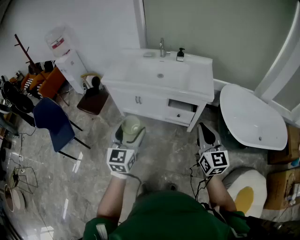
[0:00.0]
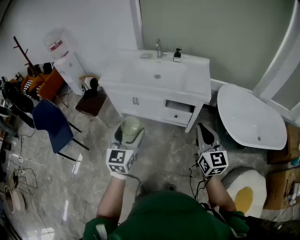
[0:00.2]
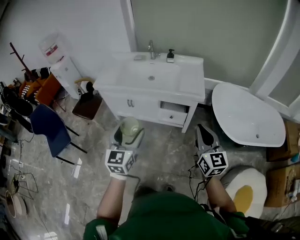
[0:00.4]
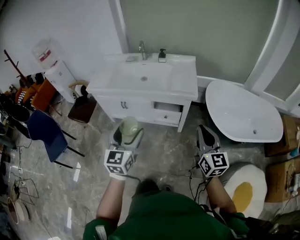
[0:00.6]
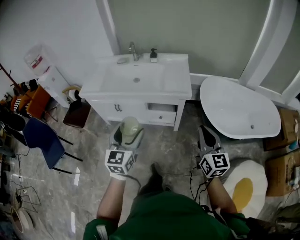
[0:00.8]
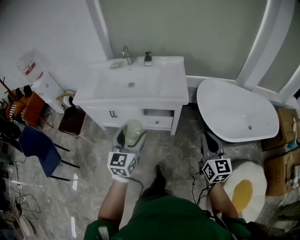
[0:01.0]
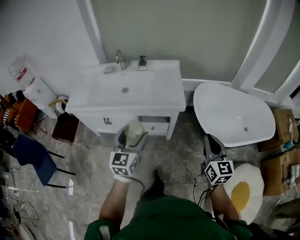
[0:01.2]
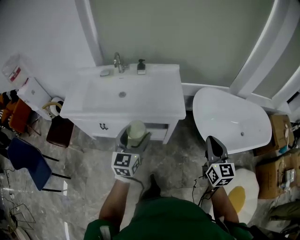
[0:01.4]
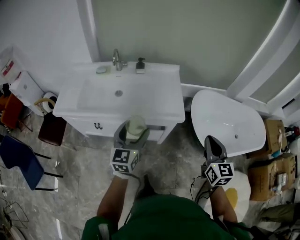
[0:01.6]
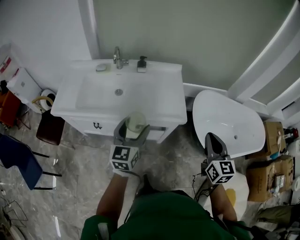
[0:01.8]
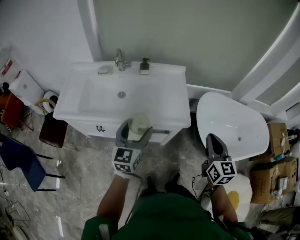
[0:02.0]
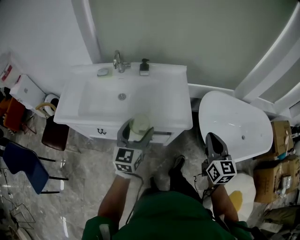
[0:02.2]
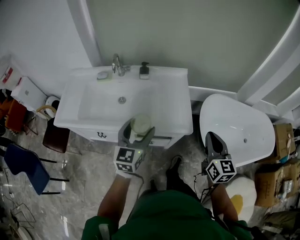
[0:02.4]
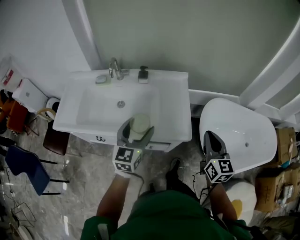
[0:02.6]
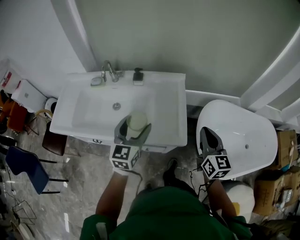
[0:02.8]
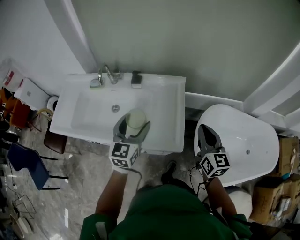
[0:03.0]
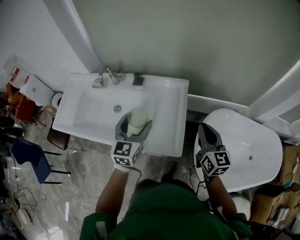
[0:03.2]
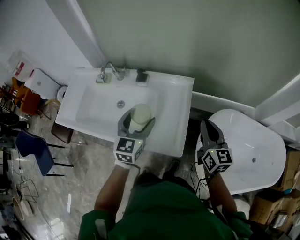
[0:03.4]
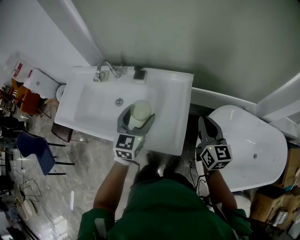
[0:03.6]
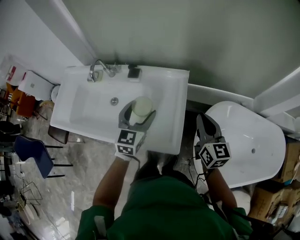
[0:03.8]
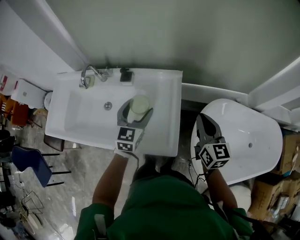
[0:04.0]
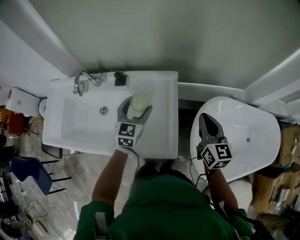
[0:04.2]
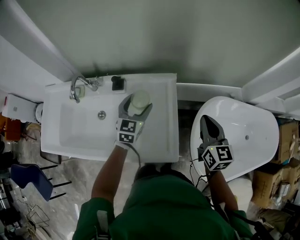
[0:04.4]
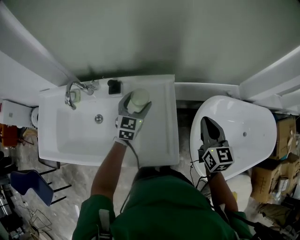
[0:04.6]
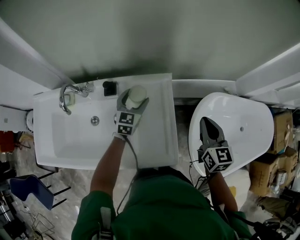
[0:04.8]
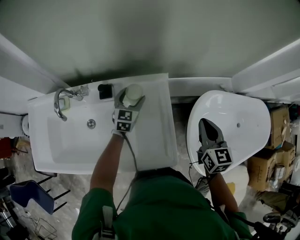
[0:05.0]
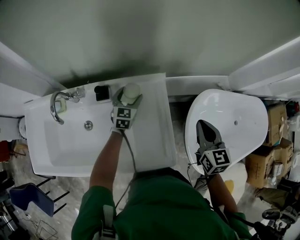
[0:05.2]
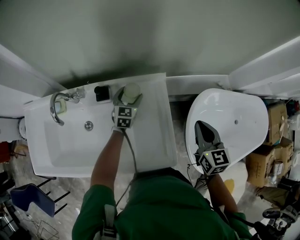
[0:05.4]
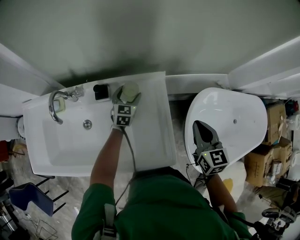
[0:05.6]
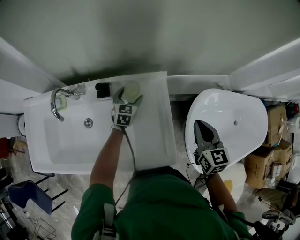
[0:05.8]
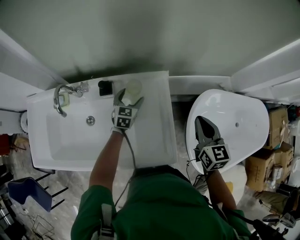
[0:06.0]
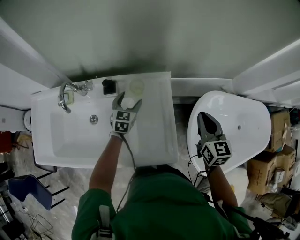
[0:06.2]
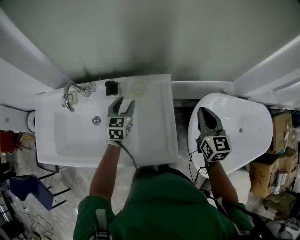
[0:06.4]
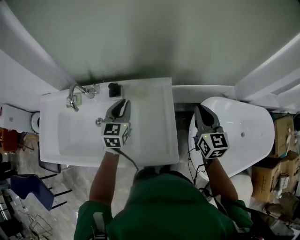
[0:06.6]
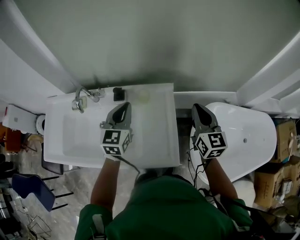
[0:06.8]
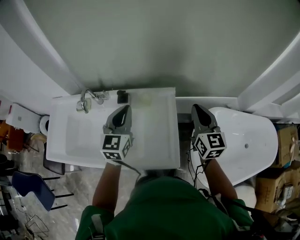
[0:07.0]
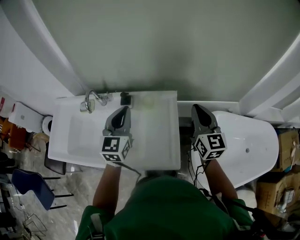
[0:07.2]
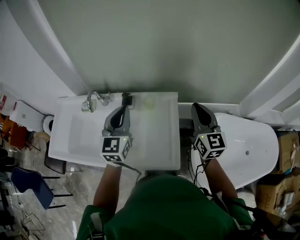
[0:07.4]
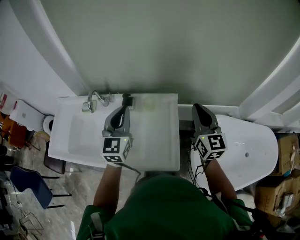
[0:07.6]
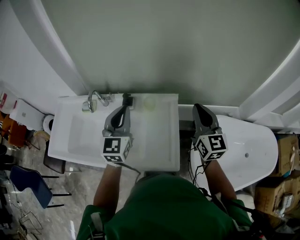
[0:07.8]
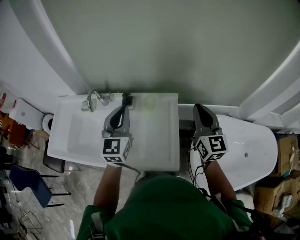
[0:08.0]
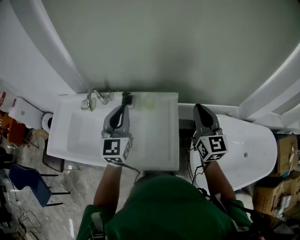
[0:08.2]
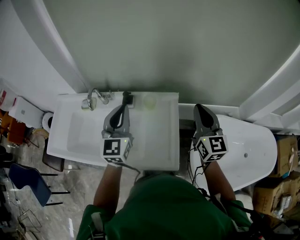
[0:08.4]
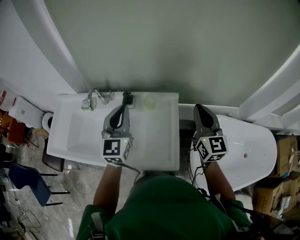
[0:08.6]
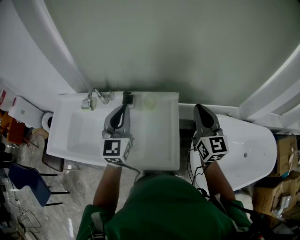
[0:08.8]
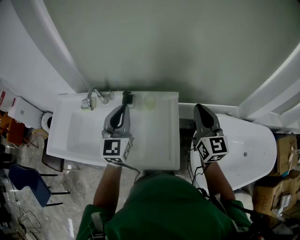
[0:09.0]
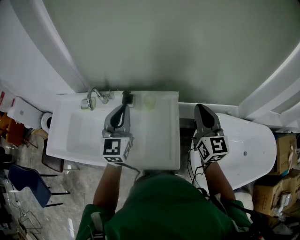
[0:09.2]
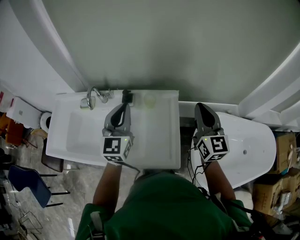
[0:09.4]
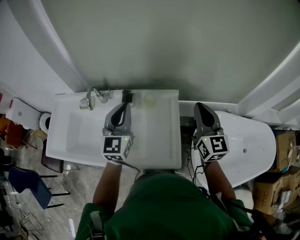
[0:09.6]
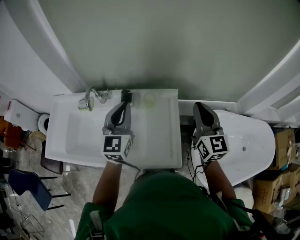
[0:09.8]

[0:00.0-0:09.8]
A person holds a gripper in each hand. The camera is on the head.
0:00.0 to 0:01.4: The right gripper travels to the right and forward by about 25 cm, and swivels some 20 degrees, while the left gripper travels forward and to the right by about 30 cm.
0:01.4 to 0:02.8: The grippers both shift forward by approximately 30 cm.
0:02.8 to 0:04.2: Both grippers move forward and to the right, approximately 25 cm.
0:04.2 to 0:05.6: The right gripper ends up approximately 5 cm from where it was. Meanwhile the left gripper is displaced forward and downward by some 25 cm.
0:05.6 to 0:07.0: The left gripper shifts roughly 35 cm upward and backward, rotates about 20 degrees, and closes its fingers; the right gripper goes some 10 cm upward, and changes its angle by roughly 20 degrees.
0:07.0 to 0:08.4: The left gripper goes approximately 5 cm upward. Meanwhile the right gripper changes place by some 5 cm.
0:08.4 to 0:09.8: The grippers move only a little.

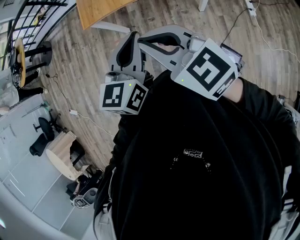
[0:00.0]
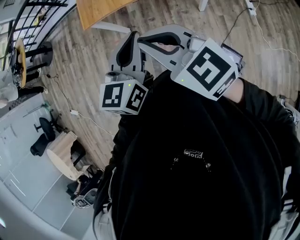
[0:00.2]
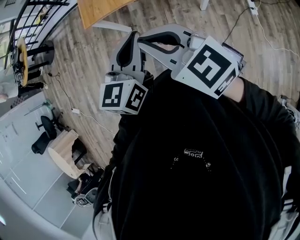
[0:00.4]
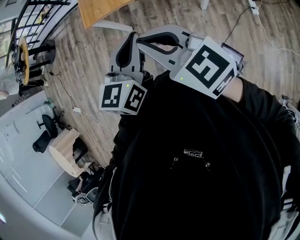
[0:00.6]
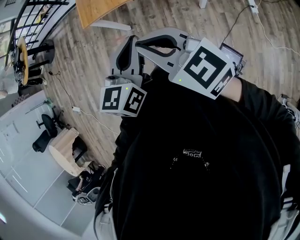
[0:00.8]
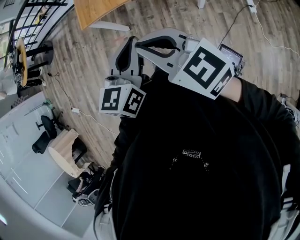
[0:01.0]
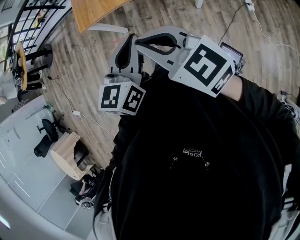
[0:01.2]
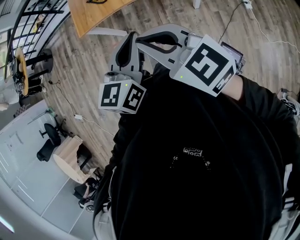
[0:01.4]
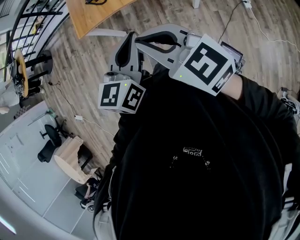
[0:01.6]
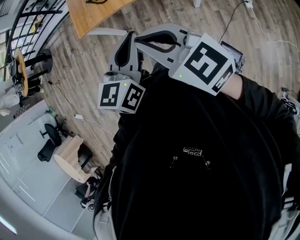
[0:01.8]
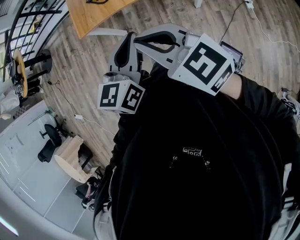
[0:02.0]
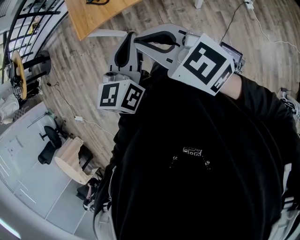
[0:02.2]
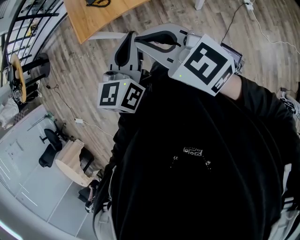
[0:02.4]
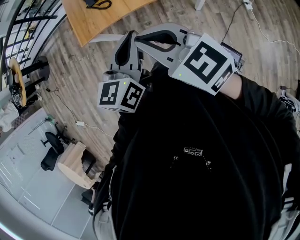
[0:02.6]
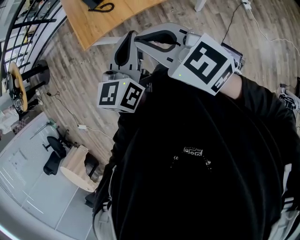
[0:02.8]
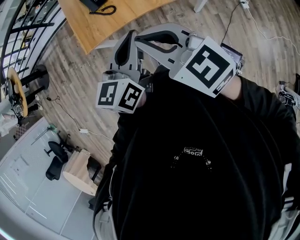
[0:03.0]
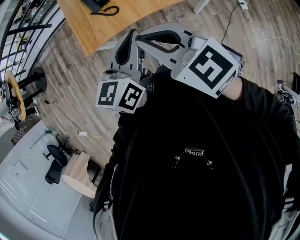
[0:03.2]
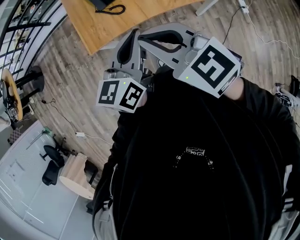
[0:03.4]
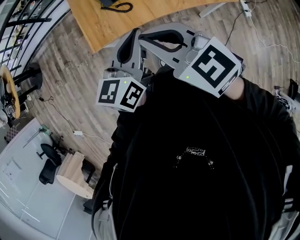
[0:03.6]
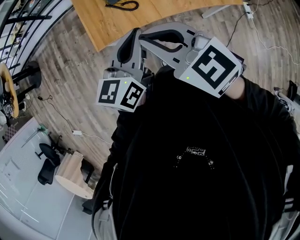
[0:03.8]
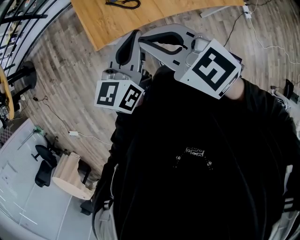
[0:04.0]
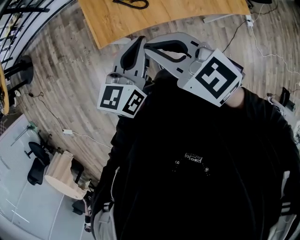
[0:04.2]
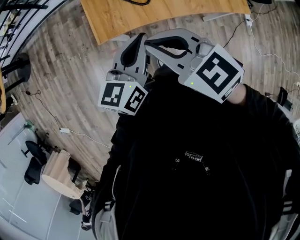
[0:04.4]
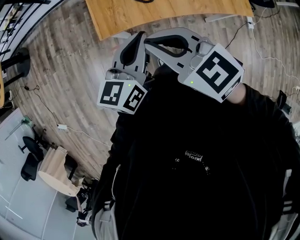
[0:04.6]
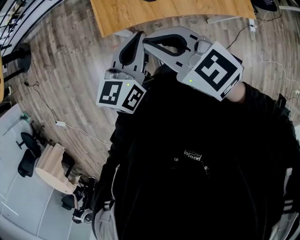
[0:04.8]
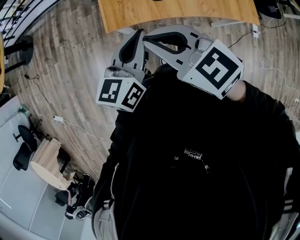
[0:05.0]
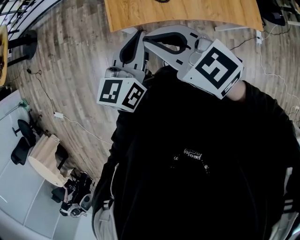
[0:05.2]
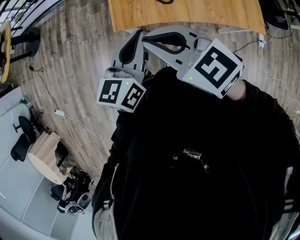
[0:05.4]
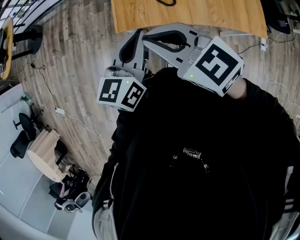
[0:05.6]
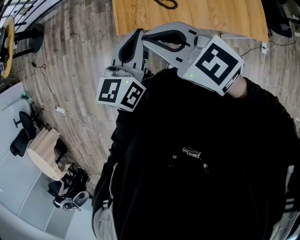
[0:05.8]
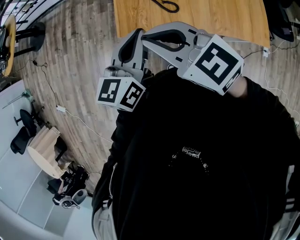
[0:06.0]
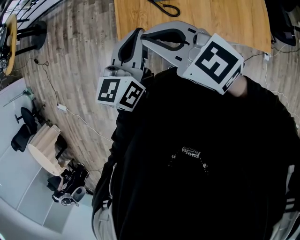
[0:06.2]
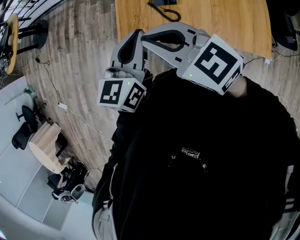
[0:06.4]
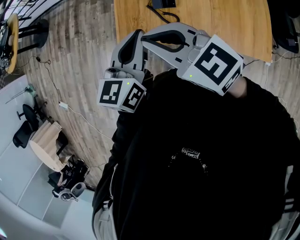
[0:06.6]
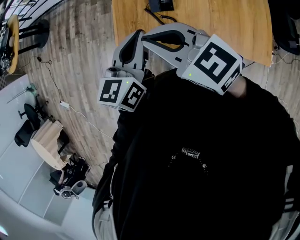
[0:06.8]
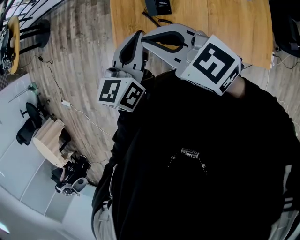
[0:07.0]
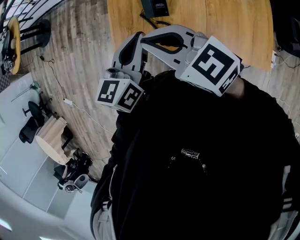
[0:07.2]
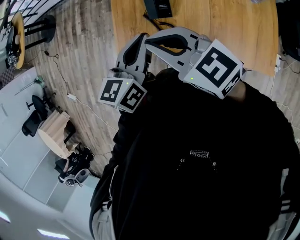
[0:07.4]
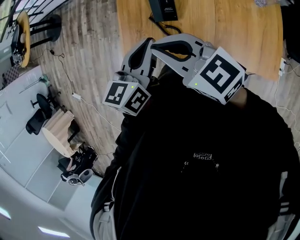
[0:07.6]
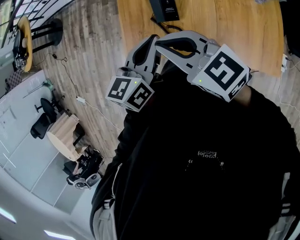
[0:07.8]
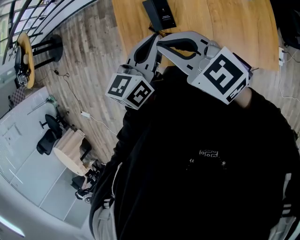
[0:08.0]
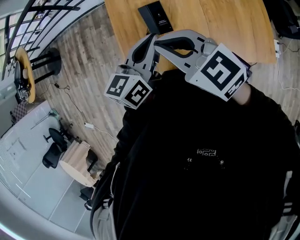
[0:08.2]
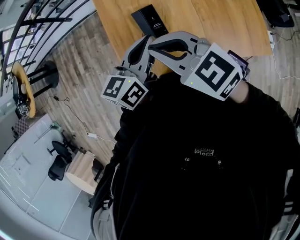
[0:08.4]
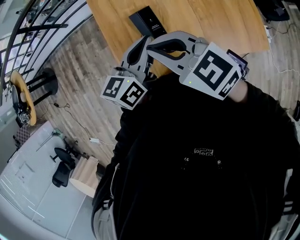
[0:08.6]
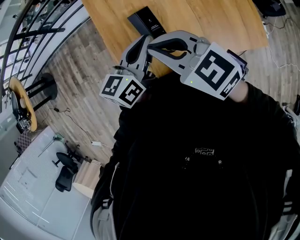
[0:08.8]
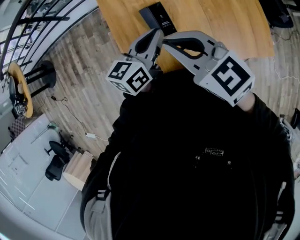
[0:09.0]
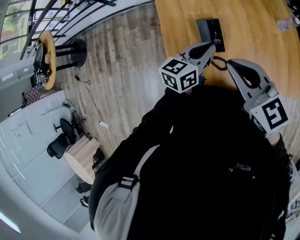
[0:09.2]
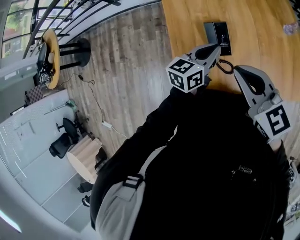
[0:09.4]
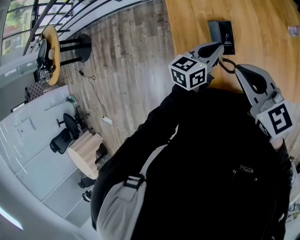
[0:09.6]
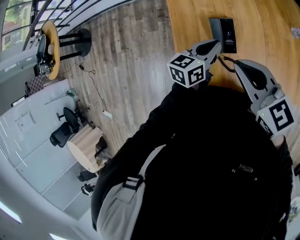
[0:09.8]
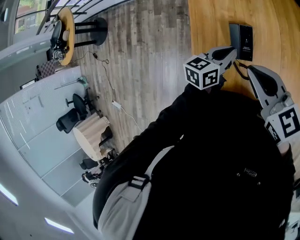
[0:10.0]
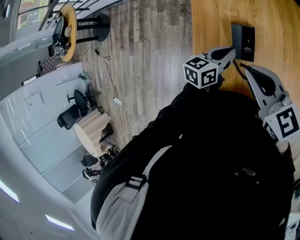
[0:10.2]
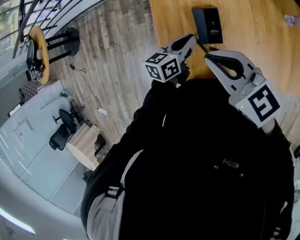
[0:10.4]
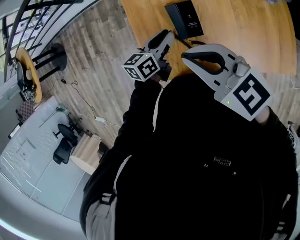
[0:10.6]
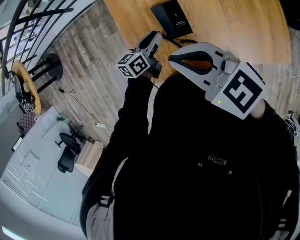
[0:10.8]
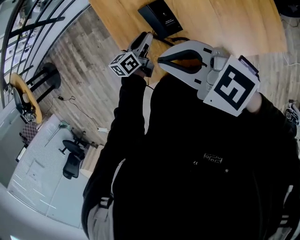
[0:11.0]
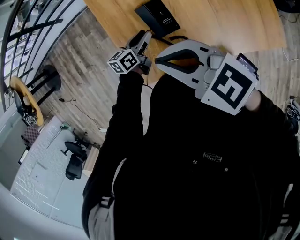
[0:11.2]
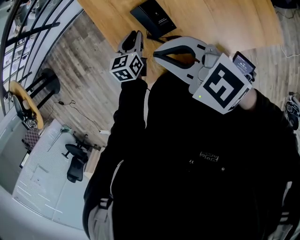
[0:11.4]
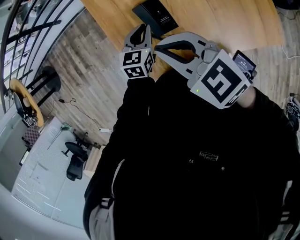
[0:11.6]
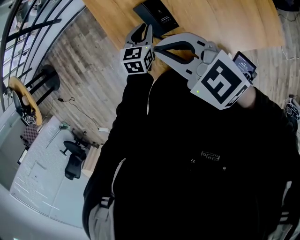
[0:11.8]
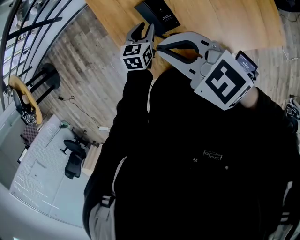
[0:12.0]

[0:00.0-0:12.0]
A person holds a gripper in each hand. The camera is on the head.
0:00.0 to 0:01.6: There are only small adjustments of the grippers.
0:01.6 to 0:03.0: The left gripper heads forward, covering approximately 15 cm, while the right gripper goes roughly 20 cm forward and to the left.
0:03.0 to 0:04.4: Both grippers move to the left and forward, approximately 20 cm.
0:04.4 to 0:06.0: The grippers both shift forward by approximately 5 cm.
0:06.0 to 0:07.6: Both grippers move to the right and forward, roughly 20 cm.
0:07.6 to 0:09.0: The right gripper changes place by approximately 5 cm, and turns by roughly 30 degrees. Meanwhile the left gripper moves roughly 10 cm, and turns by some 30 degrees.
0:09.0 to 0:10.4: The right gripper travels to the left by approximately 5 cm. Meanwhile the left gripper is displaced downward and to the left by approximately 15 cm.
0:10.4 to 0:12.0: The left gripper goes up and down, approximately 10 cm each way, reversing 2 times, turns by roughly 30 degrees, and opens its fingers.

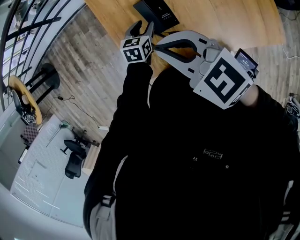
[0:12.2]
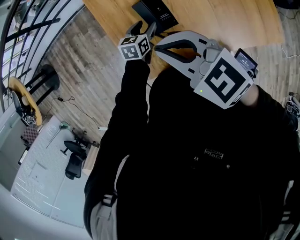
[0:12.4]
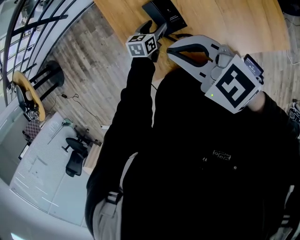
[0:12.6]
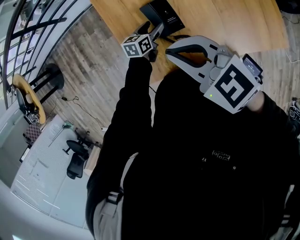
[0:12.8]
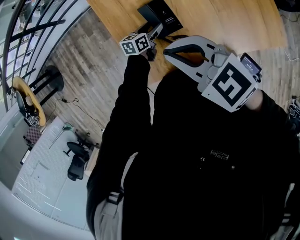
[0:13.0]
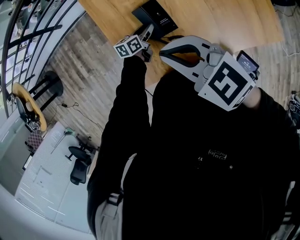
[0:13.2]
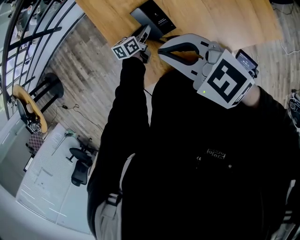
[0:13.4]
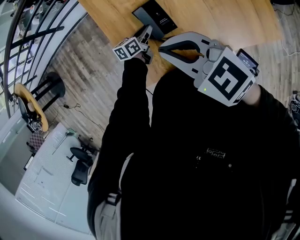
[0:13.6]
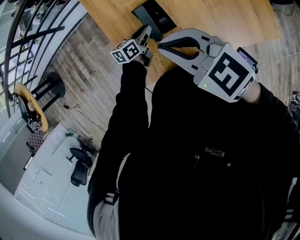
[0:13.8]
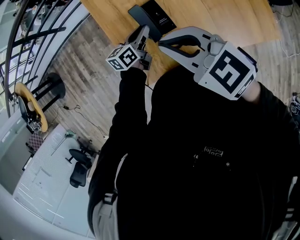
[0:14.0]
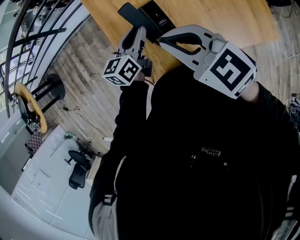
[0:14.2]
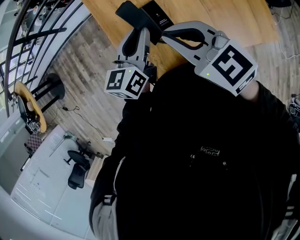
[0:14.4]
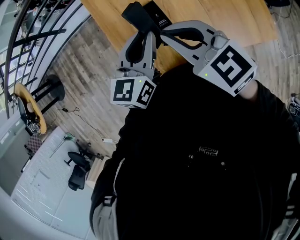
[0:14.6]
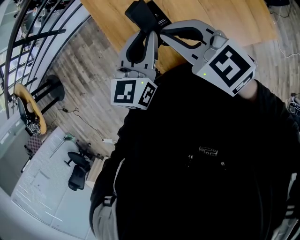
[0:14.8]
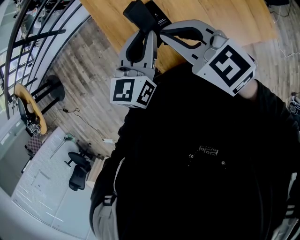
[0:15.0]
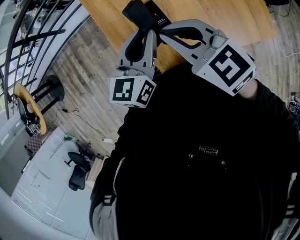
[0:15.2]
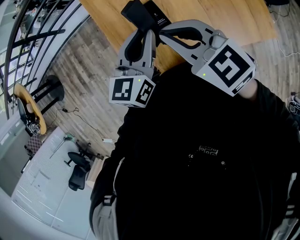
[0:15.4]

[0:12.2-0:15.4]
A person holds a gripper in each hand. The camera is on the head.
0:12.2 to 0:13.8: The left gripper rotates roughly 30 degrees, and opens, then closes again.
0:13.8 to 0:15.4: The left gripper goes some 25 cm upward, and changes its angle by roughly 30 degrees.
